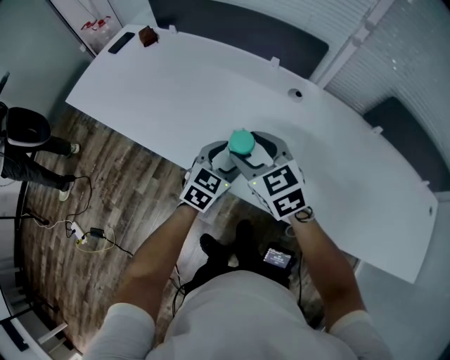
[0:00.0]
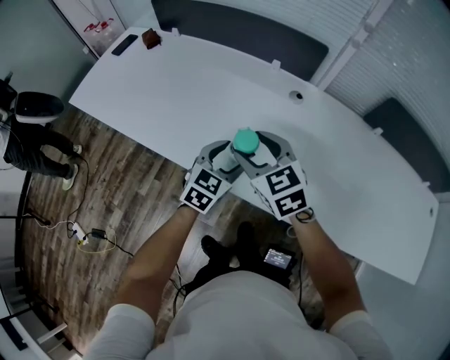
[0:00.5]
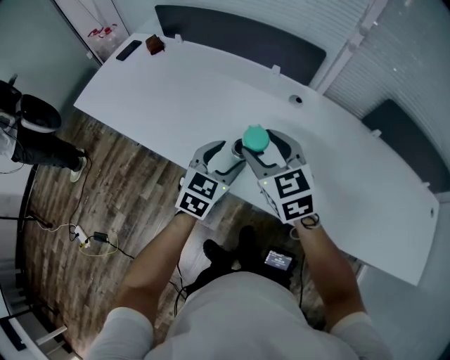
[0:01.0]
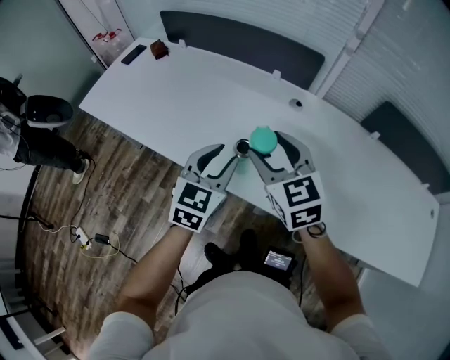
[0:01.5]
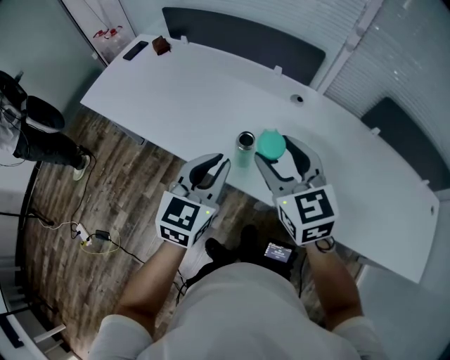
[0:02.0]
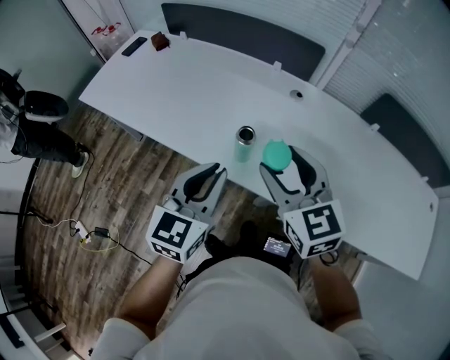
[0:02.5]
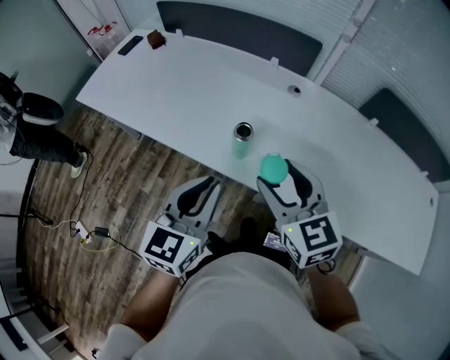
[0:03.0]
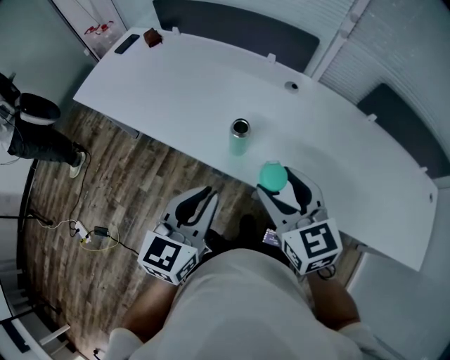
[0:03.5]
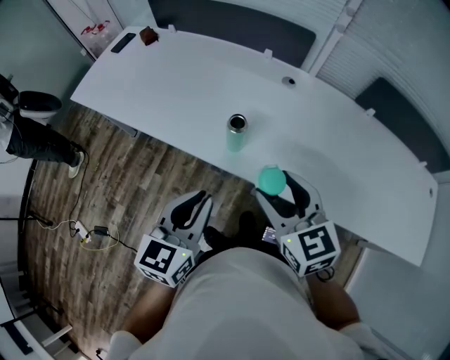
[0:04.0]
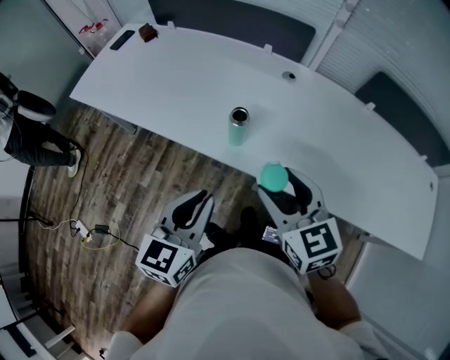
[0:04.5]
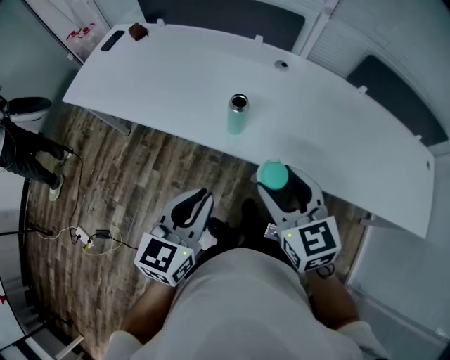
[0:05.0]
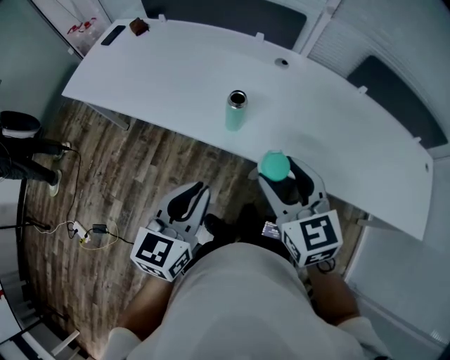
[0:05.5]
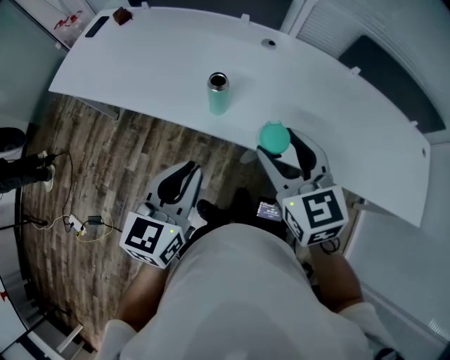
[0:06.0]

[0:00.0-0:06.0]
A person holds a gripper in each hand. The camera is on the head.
0:00.0 to 0:02.0: Both grippers travel together upward and backward, about 15 cm. The left gripper closes up.
0:02.0 to 0:04.0: Both grippers move backward, some 10 cm.
0:04.0 to 0:06.0: The grippers move only a little.

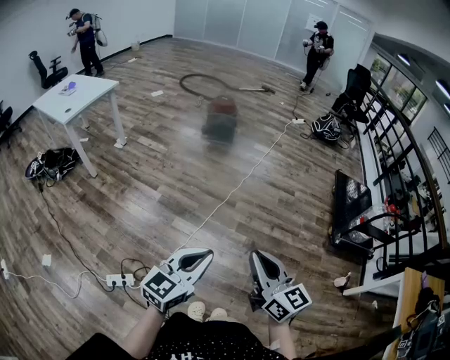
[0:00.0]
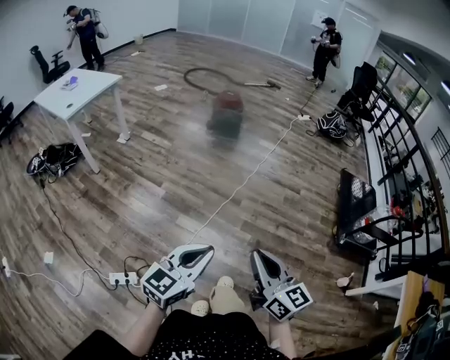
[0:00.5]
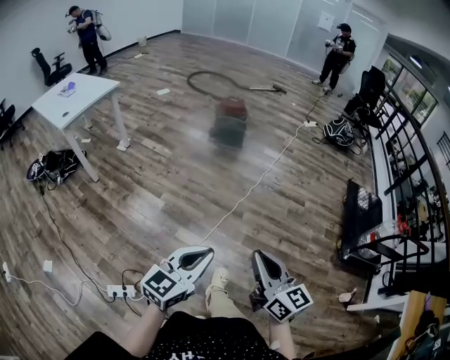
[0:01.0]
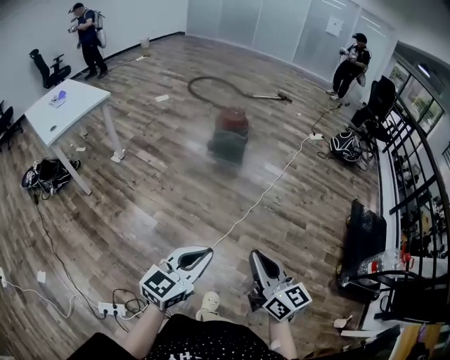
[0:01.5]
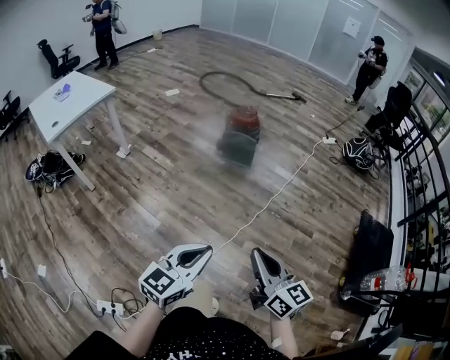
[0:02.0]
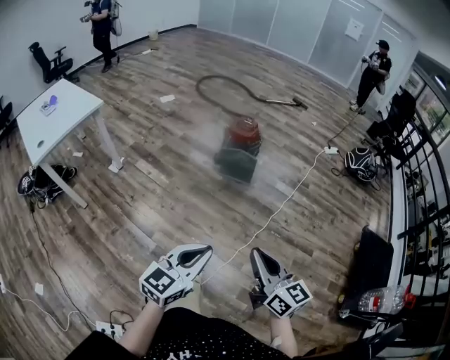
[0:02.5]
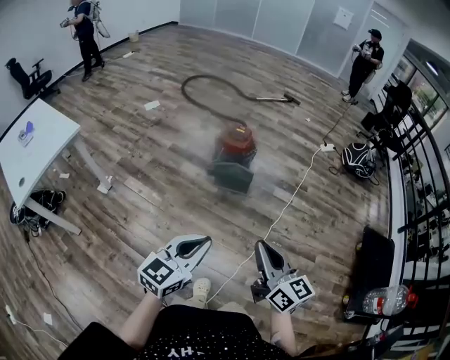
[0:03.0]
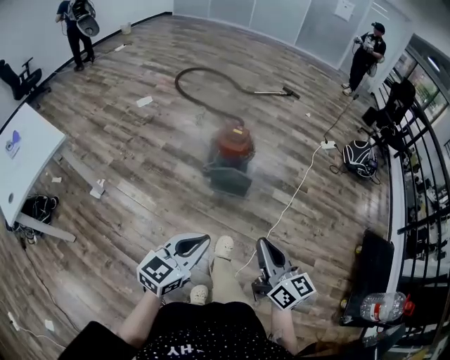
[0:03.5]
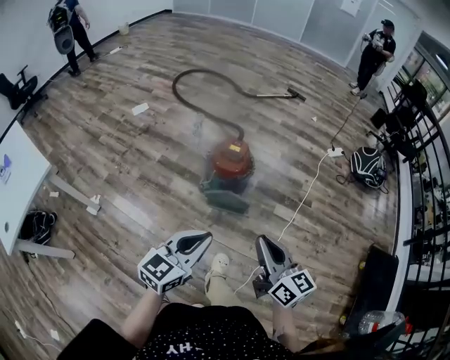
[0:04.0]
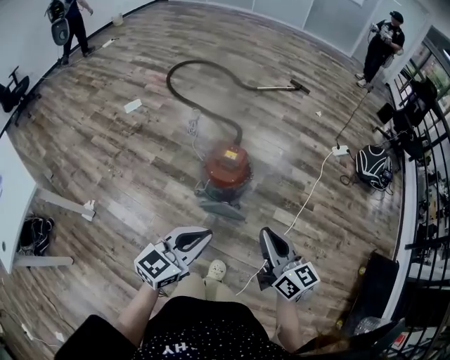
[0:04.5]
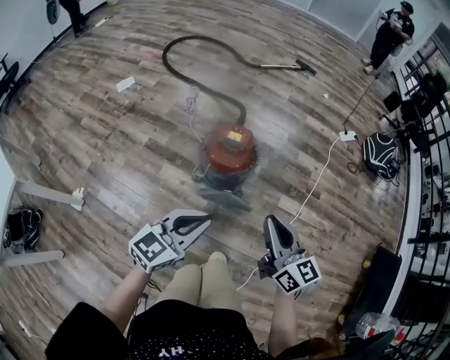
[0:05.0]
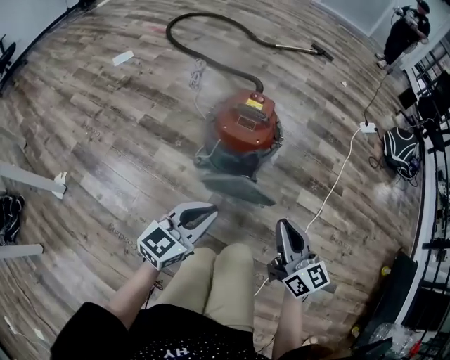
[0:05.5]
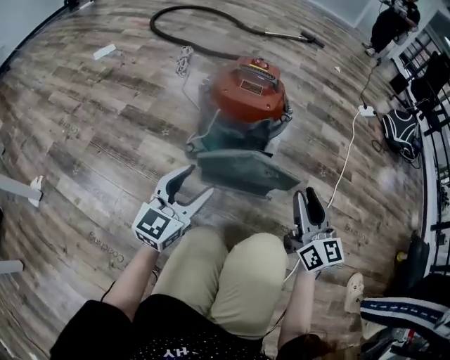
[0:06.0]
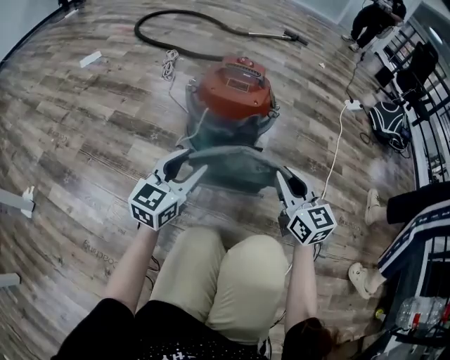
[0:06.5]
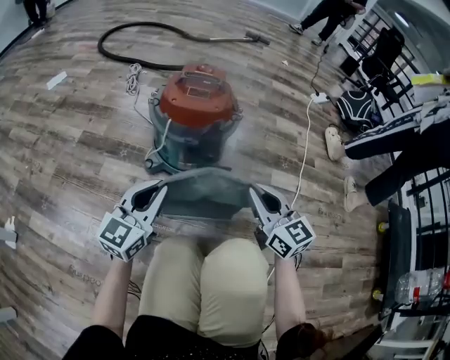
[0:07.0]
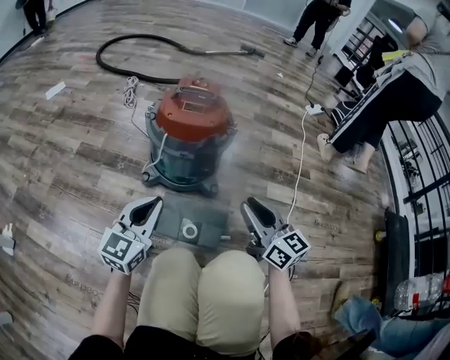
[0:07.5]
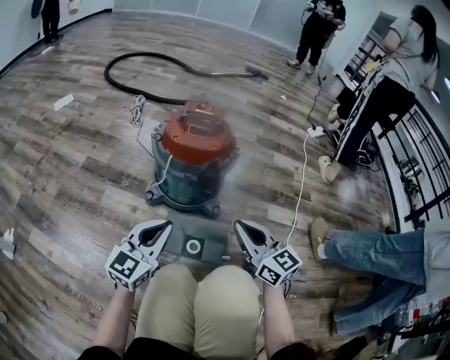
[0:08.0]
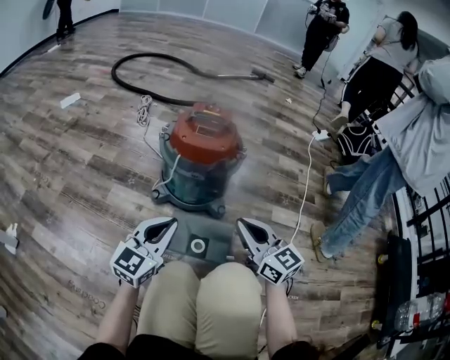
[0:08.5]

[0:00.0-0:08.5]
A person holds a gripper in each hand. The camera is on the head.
0:00.0 to 0:02.0: The pair of grippers is taken forward, about 40 cm.
0:02.0 to 0:04.0: Both grippers are carried forward, roughly 70 cm.
0:04.0 to 0:06.5: Both grippers travel together downward and forward, about 60 cm. The right gripper turns by roughly 30 degrees. The left gripper opens up.
0:06.5 to 0:08.5: The left gripper goes roughly 5 cm backward, and closes its fingers; the right gripper changes place by about 5 cm.

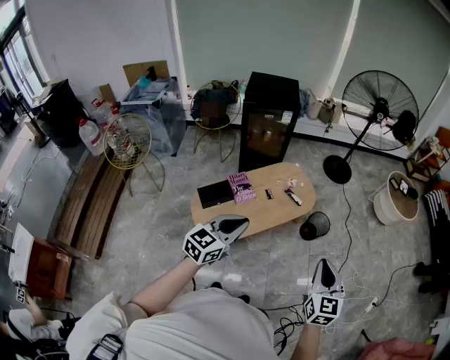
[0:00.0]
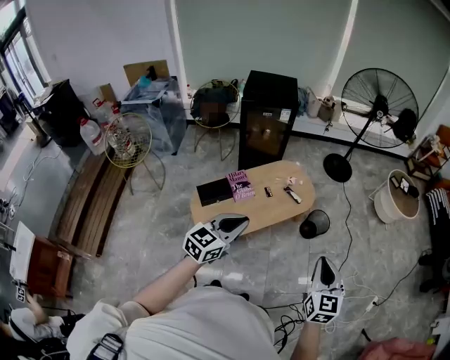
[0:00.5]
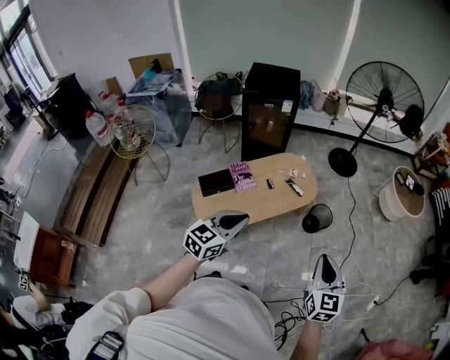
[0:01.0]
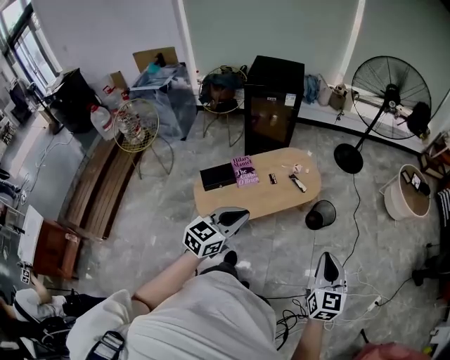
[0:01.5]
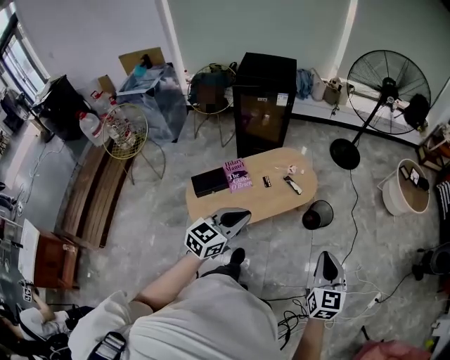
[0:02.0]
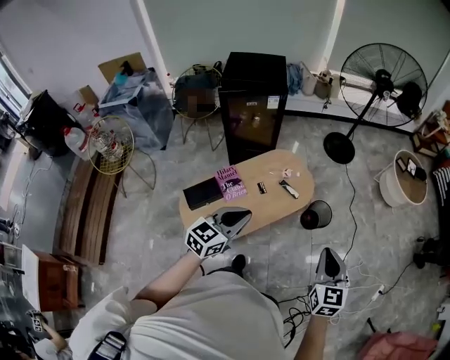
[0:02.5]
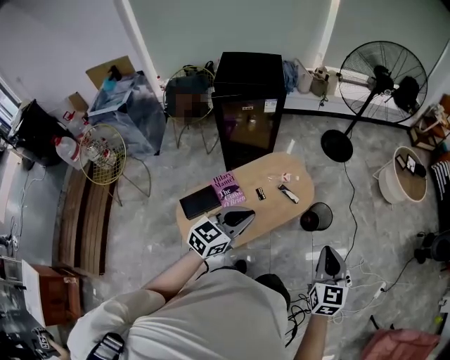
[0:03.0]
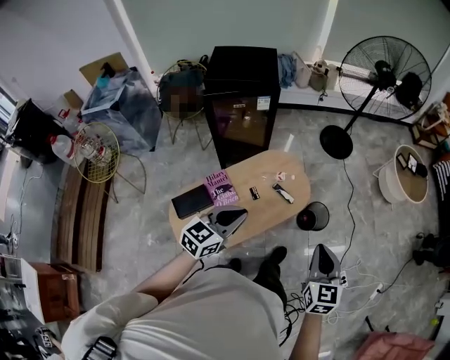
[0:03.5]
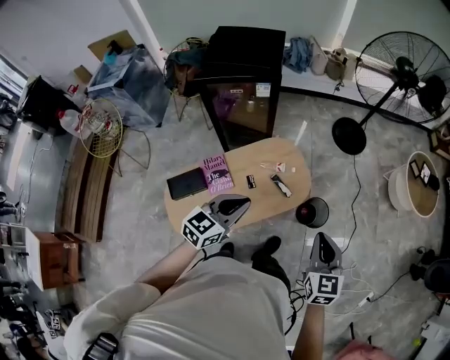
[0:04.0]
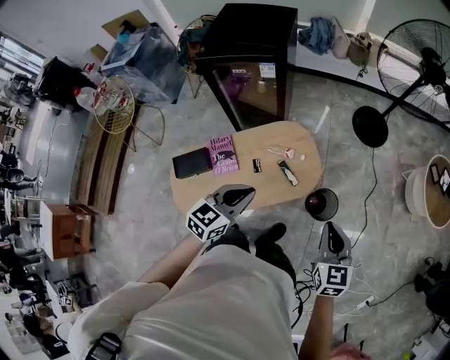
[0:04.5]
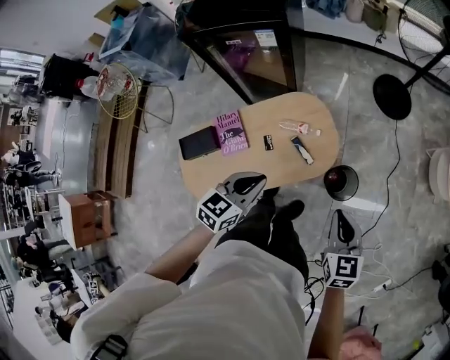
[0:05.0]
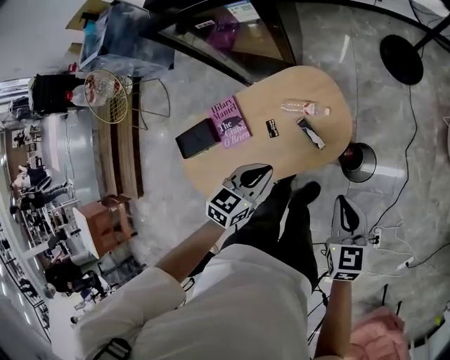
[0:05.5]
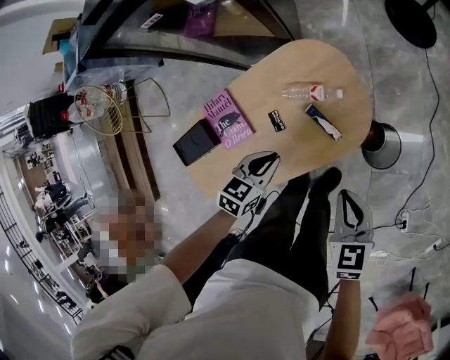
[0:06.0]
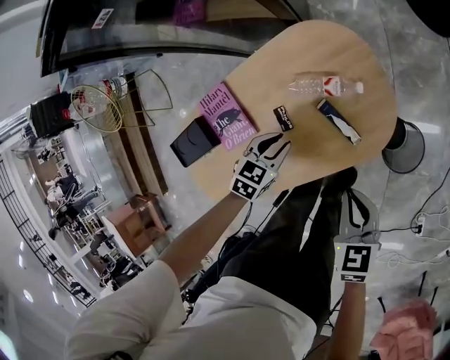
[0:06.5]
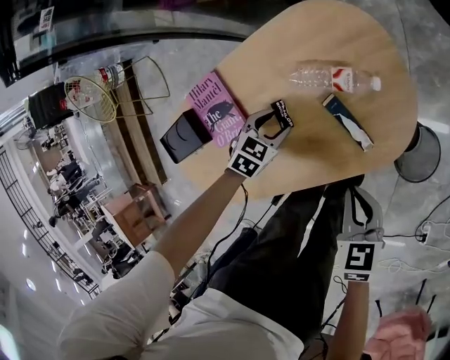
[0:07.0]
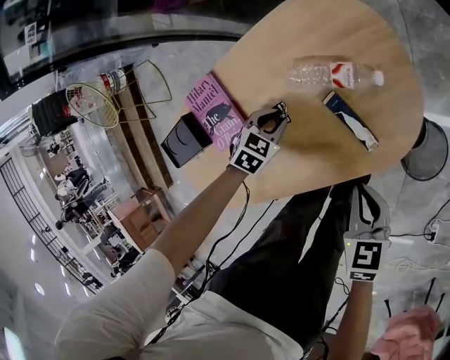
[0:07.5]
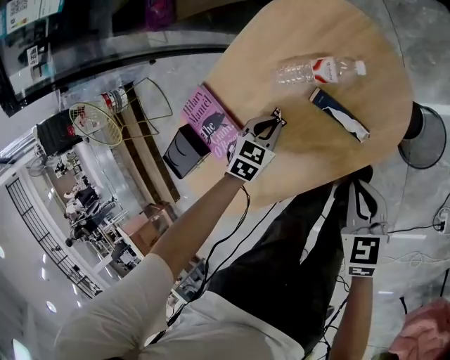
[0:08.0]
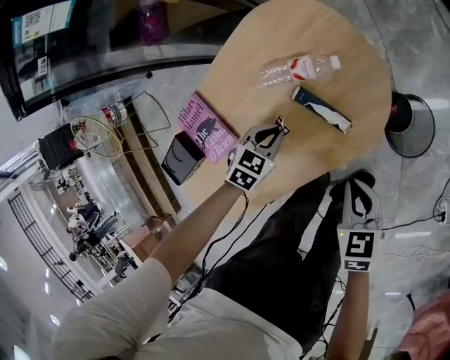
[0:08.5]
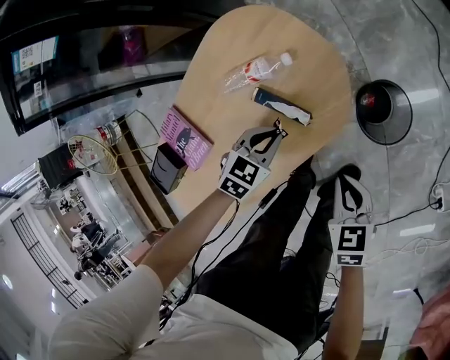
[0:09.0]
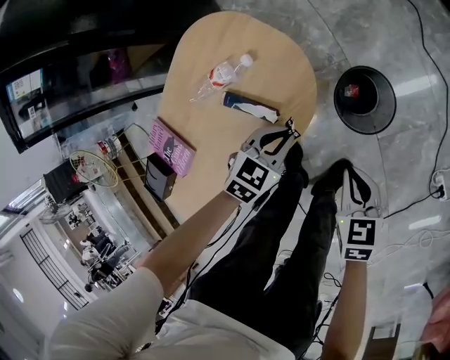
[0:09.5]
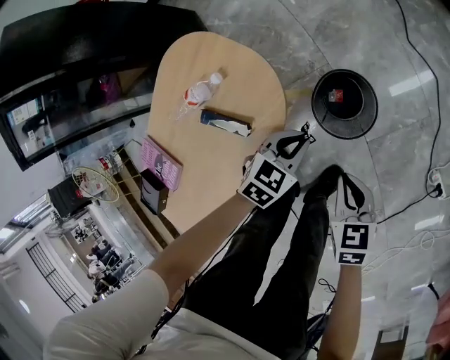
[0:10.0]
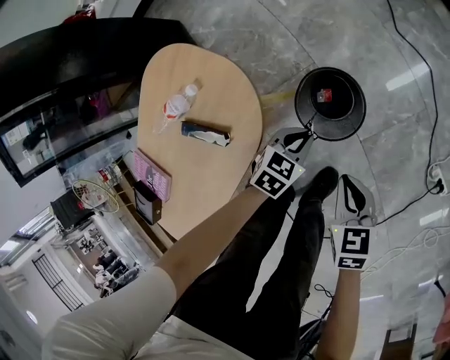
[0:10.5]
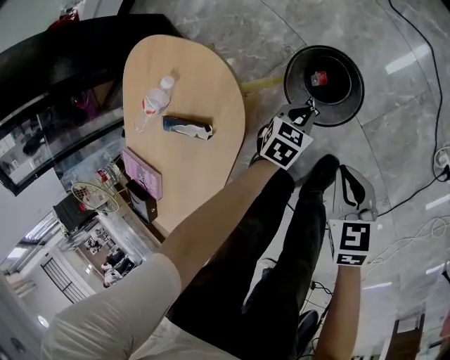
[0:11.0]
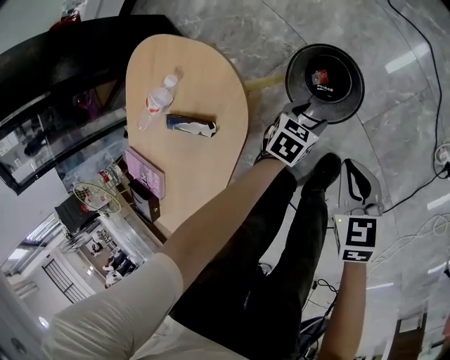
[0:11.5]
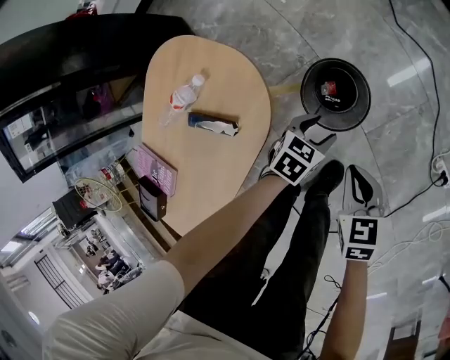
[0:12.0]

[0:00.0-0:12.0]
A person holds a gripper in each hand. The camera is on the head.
0:00.0 to 0:02.0: Both grippers travel together forward and to the right, about 10 cm.
0:02.0 to 0:04.0: The grippers both shift forward by approximately 30 cm.
0:04.0 to 0:06.0: The right gripper is displaced downward and forward by approximately 35 cm, and rotates about 20 degrees. The left gripper is displaced downward by roughly 40 cm, and changes its angle by some 30 degrees.
0:06.0 to 0:08.0: The grippers both shift downward by about 25 cm. The left gripper swivels some 30 degrees, and opens, then closes again.
0:08.0 to 0:10.0: The right gripper shifts by approximately 25 cm, and rotates about 20 degrees; the left gripper changes place by roughly 40 cm, and rotates approximately 30 degrees.
0:10.0 to 0:12.0: The left gripper is displaced downward and to the right by approximately 10 cm, and opens up.
